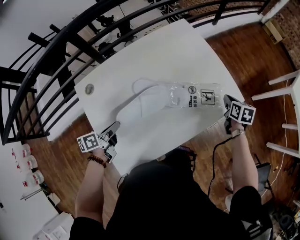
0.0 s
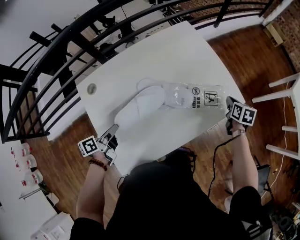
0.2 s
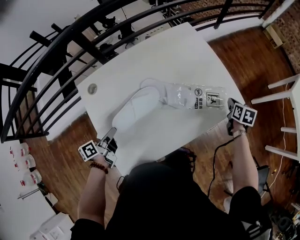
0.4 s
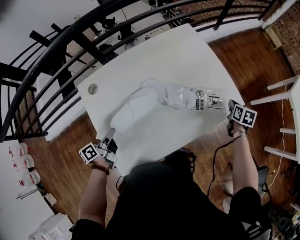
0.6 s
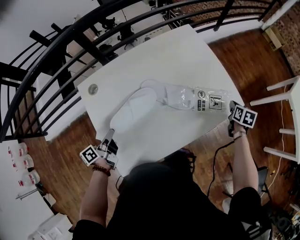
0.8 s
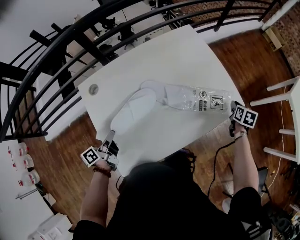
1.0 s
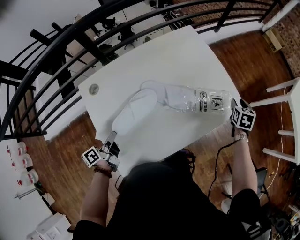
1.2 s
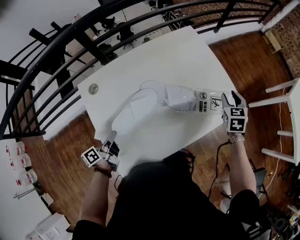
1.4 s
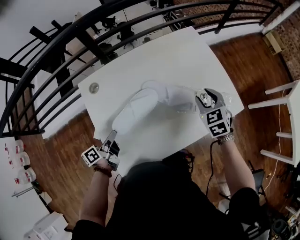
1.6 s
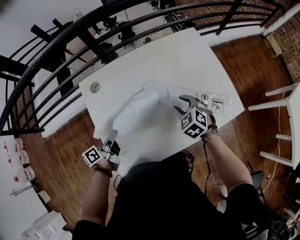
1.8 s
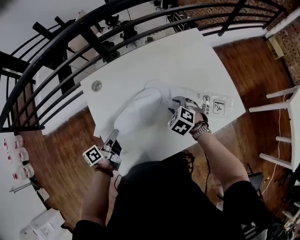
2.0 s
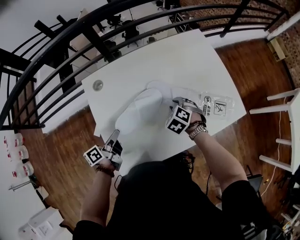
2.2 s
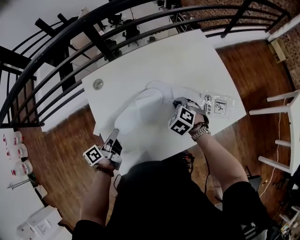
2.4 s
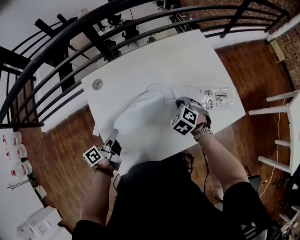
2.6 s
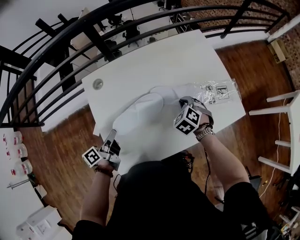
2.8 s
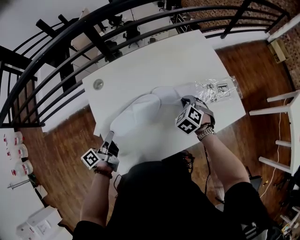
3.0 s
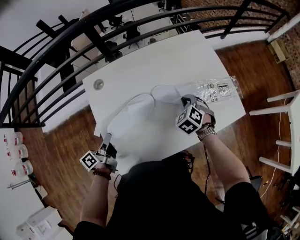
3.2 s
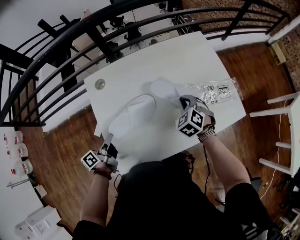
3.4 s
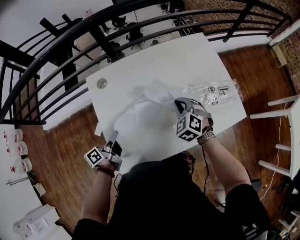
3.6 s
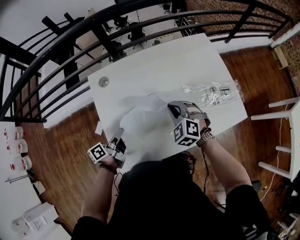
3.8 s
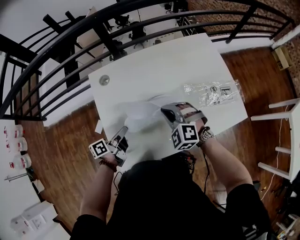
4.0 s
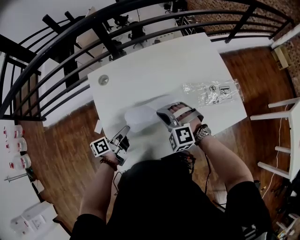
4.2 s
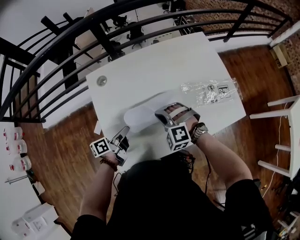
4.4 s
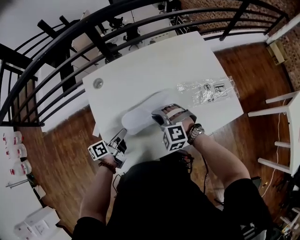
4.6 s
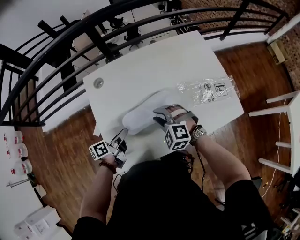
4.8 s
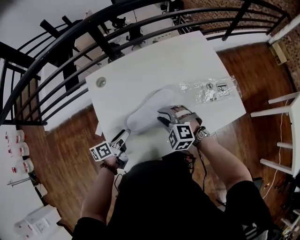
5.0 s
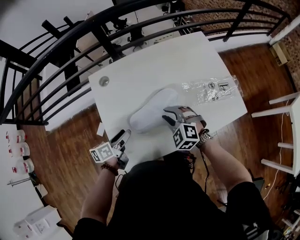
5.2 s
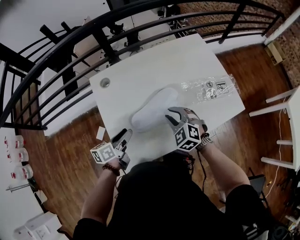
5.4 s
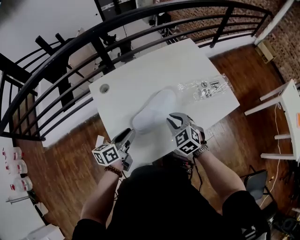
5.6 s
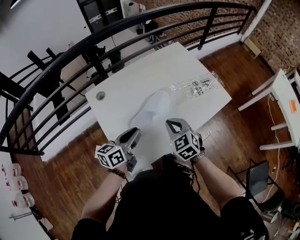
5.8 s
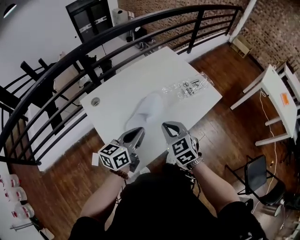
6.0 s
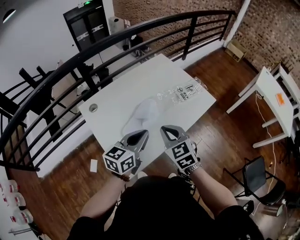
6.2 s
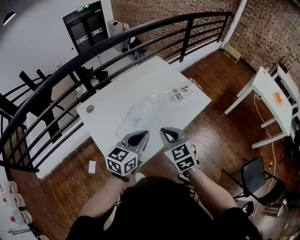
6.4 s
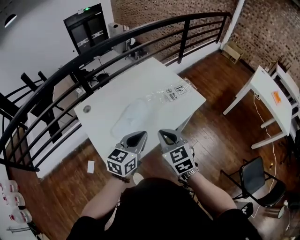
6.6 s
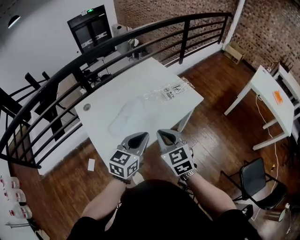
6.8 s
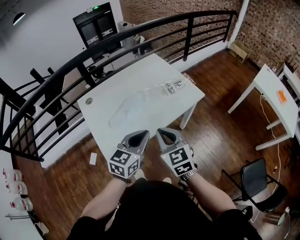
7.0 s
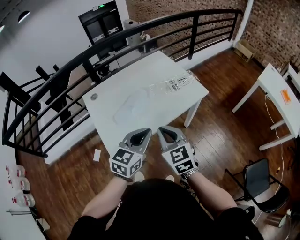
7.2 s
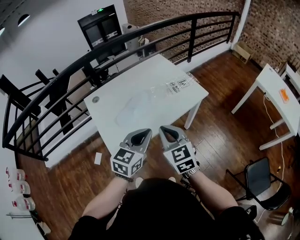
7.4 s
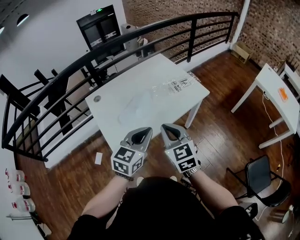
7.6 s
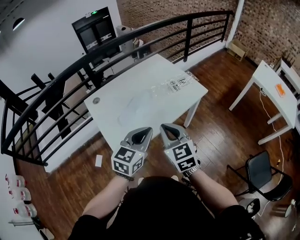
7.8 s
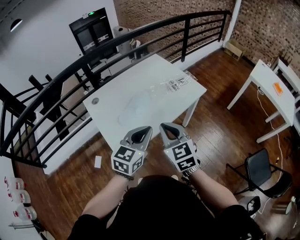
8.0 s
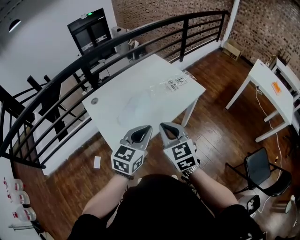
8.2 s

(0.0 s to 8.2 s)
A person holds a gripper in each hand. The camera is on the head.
0.0 s - 1.6 s: The right gripper travels to the left and upward by about 20 cm, twists approximately 50 degrees counterclockwise, seen from behind, and opens its fingers. The left gripper moves about 5 cm, and turns by some 30 degrees.
1.6 s - 3.2 s: The right gripper travels to the left and downward by approximately 10 cm, swivels roughly 20 degrees, and closes.
3.2 s - 5.0 s: The right gripper goes about 15 cm to the left and backward, swivels about 40 degrees, and opens its fingers. Meanwhile the left gripper shifts roughly 10 cm to the right, changes its angle by about 20 degrees, and opens its fingers.
5.0 s - 6.6 s: The right gripper shifts by some 25 cm, rolls clockwise, seen from behind, by about 50 degrees, and closes up; the left gripper heads upward, covering about 20 cm, rolls clockwise, seen from behind, by approximately 60 degrees, and closes.
6.6 s - 8.2 s: Both grippers move backward, roughly 10 cm.

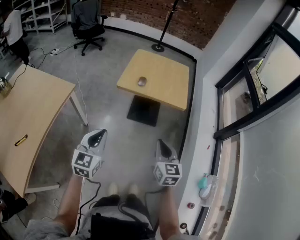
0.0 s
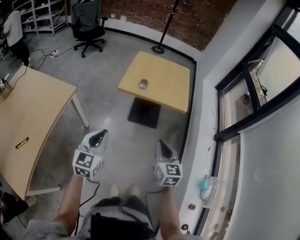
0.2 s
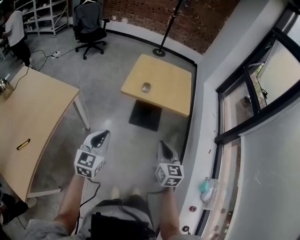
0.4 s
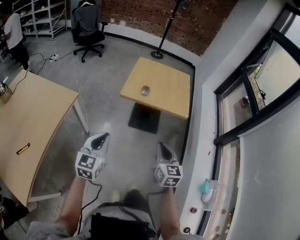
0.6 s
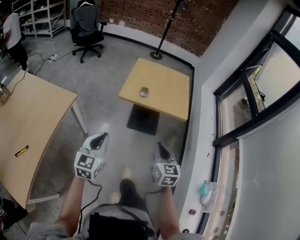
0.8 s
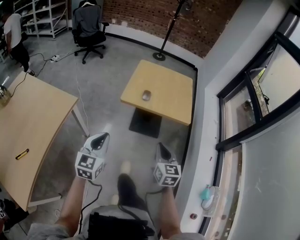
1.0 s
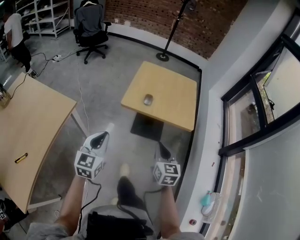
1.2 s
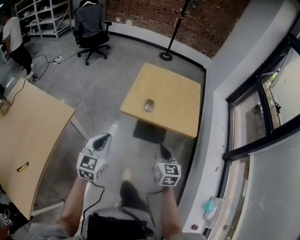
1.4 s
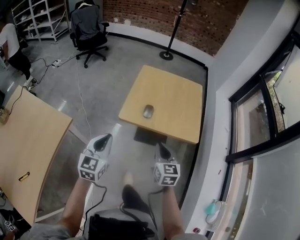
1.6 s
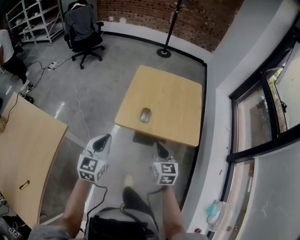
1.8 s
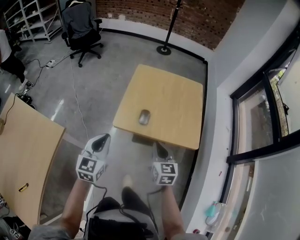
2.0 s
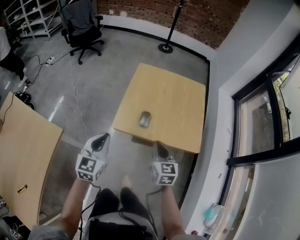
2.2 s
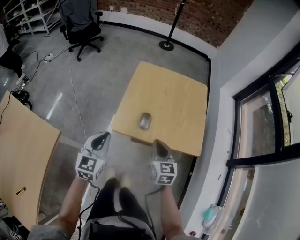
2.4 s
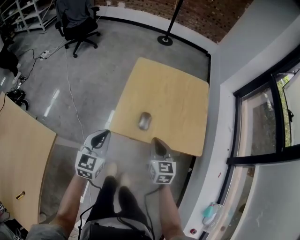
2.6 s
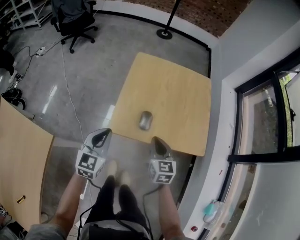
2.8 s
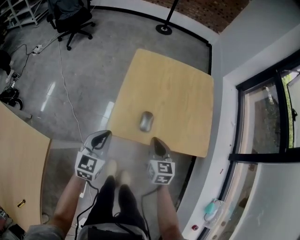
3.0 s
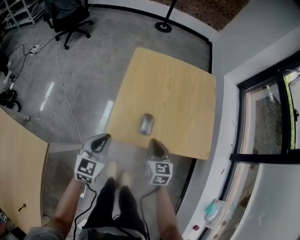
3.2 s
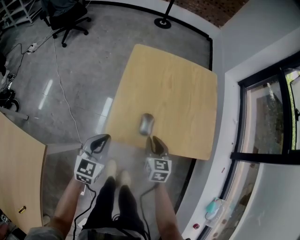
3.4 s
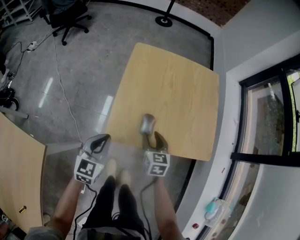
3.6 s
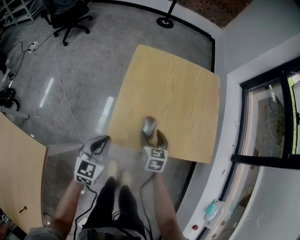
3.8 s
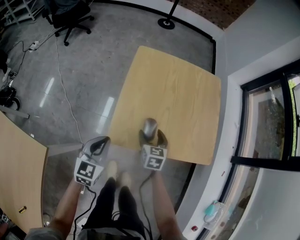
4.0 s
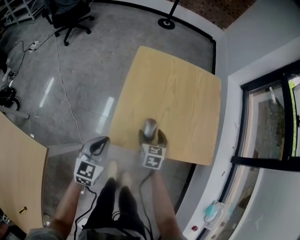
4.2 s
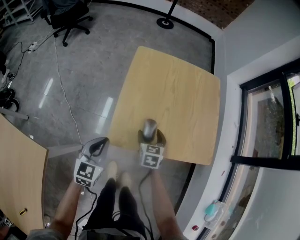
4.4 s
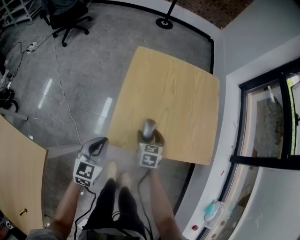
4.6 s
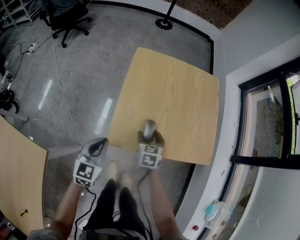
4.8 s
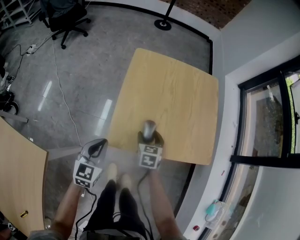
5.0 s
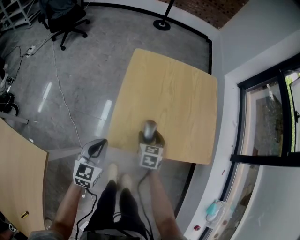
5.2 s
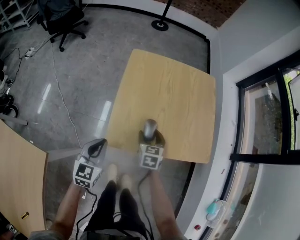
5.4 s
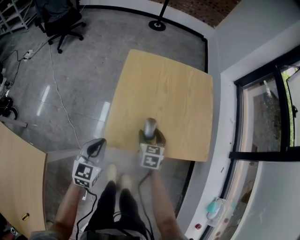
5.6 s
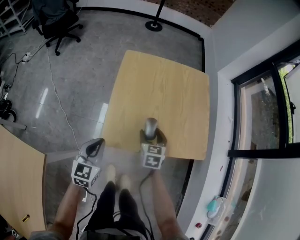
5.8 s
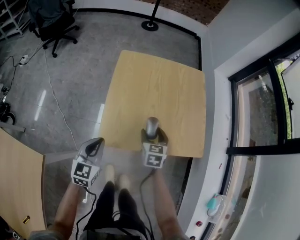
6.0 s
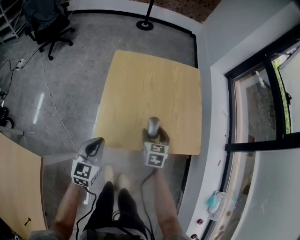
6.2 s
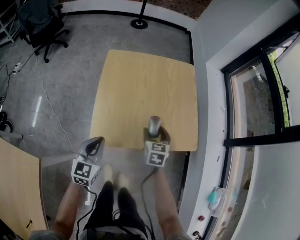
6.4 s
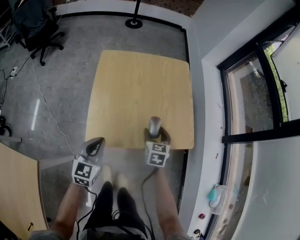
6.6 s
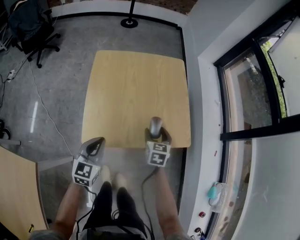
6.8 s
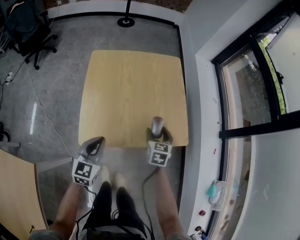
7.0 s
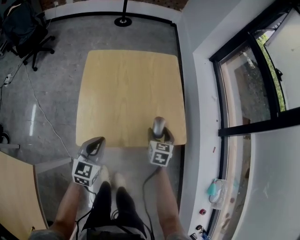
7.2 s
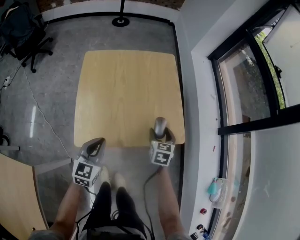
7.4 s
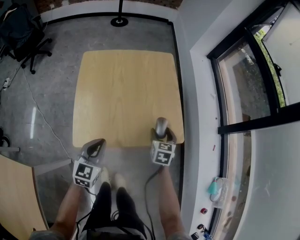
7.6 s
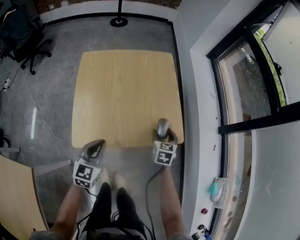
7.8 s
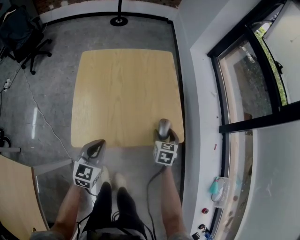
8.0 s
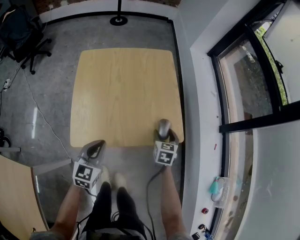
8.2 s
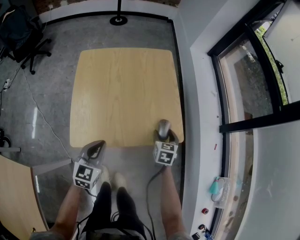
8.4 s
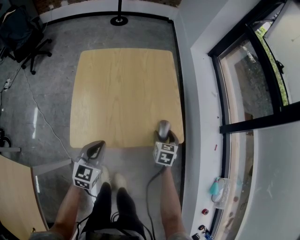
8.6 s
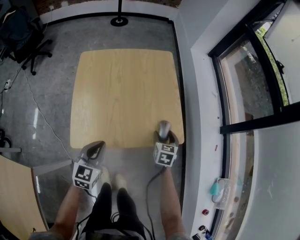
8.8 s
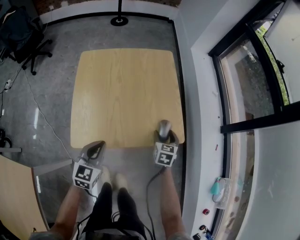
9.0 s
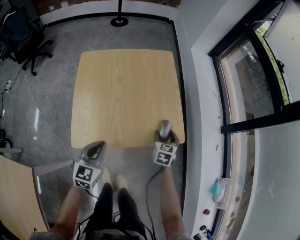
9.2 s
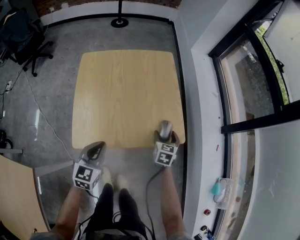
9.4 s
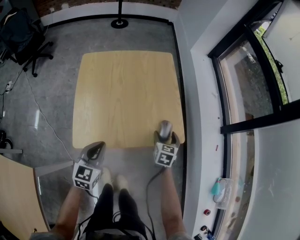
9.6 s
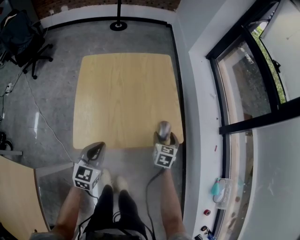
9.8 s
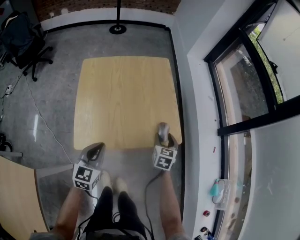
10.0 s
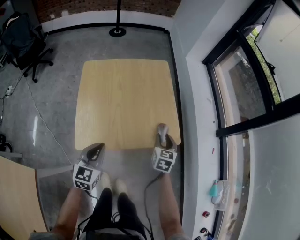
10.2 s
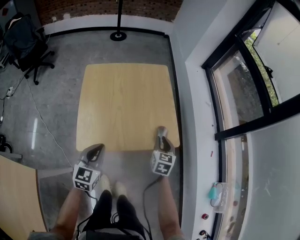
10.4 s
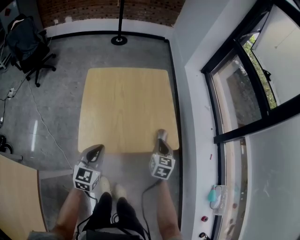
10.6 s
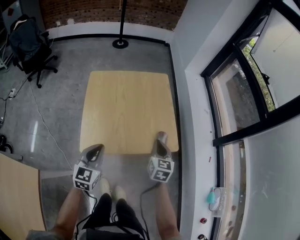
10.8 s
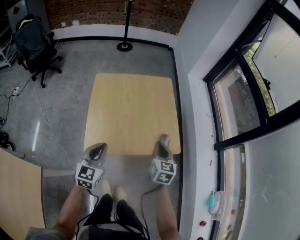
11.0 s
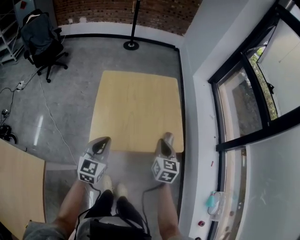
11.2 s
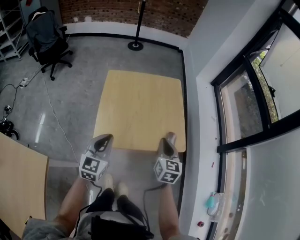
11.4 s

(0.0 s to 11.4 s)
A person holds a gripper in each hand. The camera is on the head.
0.0 s - 1.4 s: Both grippers travel together forward, about 20 cm.
1.4 s - 2.8 s: The right gripper is displaced forward and downward by some 25 cm. Meanwhile the left gripper moves forward, roughly 25 cm.
2.8 s - 4.2 s: The right gripper goes approximately 15 cm downward and forward, and opens up. Meanwhile the left gripper travels downward by roughly 10 cm.
4.2 s - 5.6 s: The grippers move only a little.
5.6 s - 7.2 s: The grippers both shift to the right by about 20 cm.
7.2 s - 8.6 s: The right gripper moves to the right, roughly 5 cm.
8.6 s - 10.0 s: There are only small adjustments of the grippers.
10.0 s - 11.4 s: The left gripper travels upward by some 10 cm. Meanwhile the right gripper moves upward and to the left, roughly 20 cm, and closes its fingers.

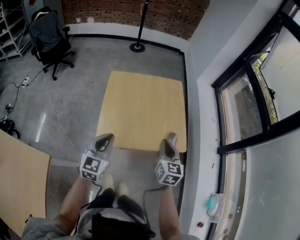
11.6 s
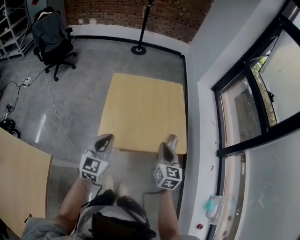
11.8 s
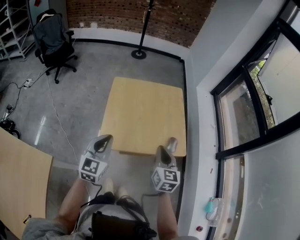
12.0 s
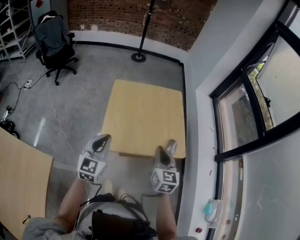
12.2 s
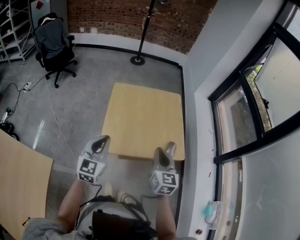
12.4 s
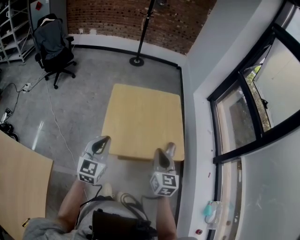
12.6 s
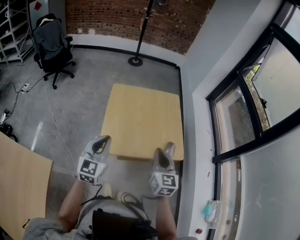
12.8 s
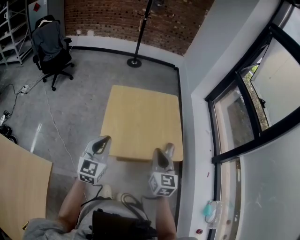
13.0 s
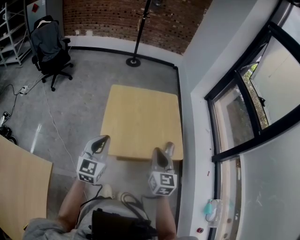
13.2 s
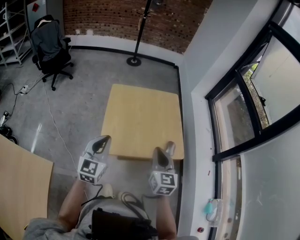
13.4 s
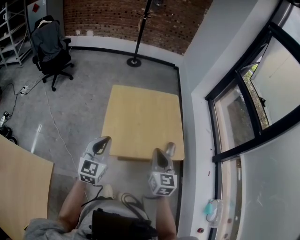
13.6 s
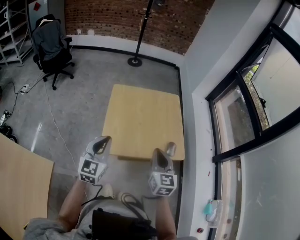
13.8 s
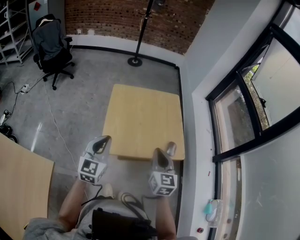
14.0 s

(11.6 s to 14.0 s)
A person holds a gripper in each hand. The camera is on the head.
11.6 s - 12.8 s: The left gripper is displaced upward by some 5 cm, while the right gripper moves upward and to the left, about 10 cm.
12.8 s - 14.0 s: The grippers stay close to where they were, moving slightly.

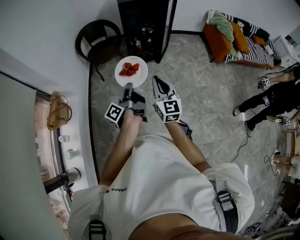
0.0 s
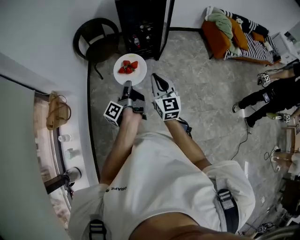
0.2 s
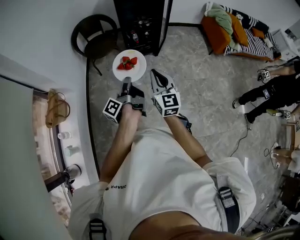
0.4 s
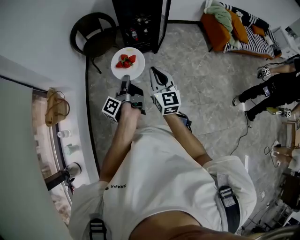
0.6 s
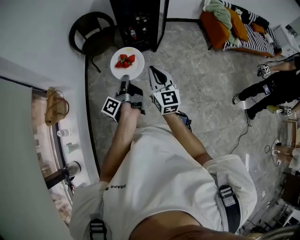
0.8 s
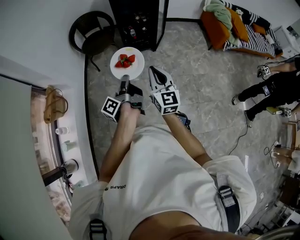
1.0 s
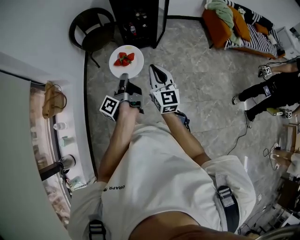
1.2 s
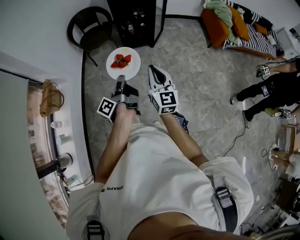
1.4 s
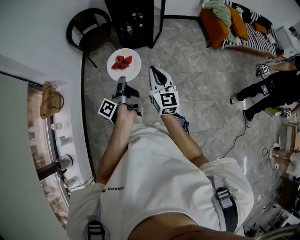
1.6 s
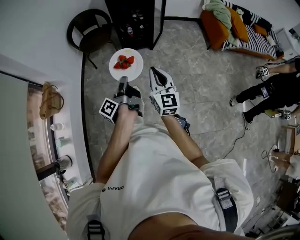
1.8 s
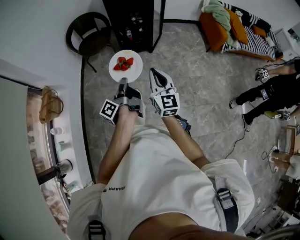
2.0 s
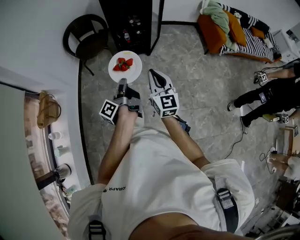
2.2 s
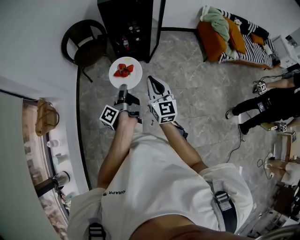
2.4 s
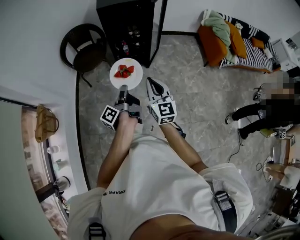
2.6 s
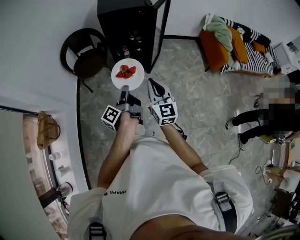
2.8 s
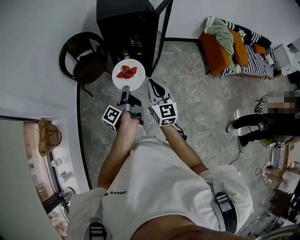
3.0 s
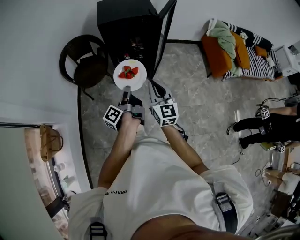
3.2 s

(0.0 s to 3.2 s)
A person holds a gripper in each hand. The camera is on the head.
0.0 s - 1.6 s: The right gripper changes place by some 10 cm.
1.6 s - 3.2 s: The right gripper shifts by some 35 cm.
